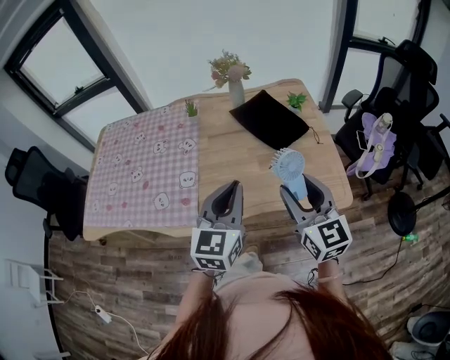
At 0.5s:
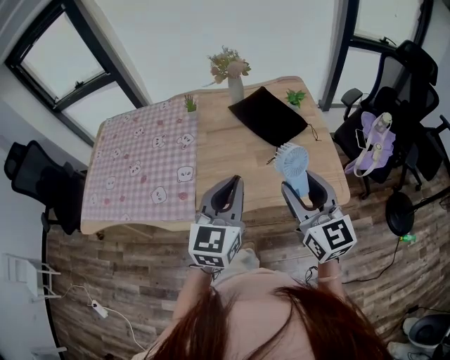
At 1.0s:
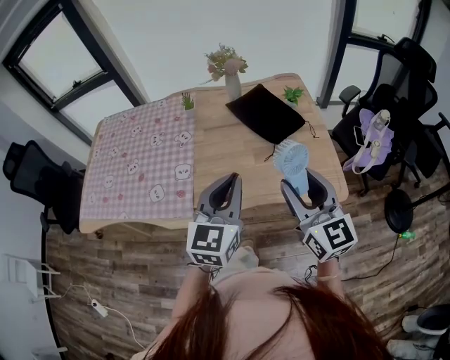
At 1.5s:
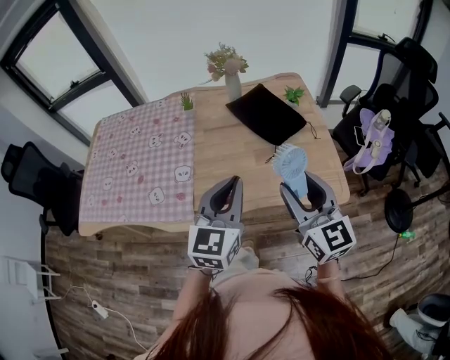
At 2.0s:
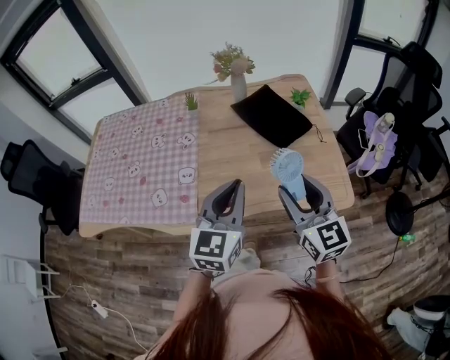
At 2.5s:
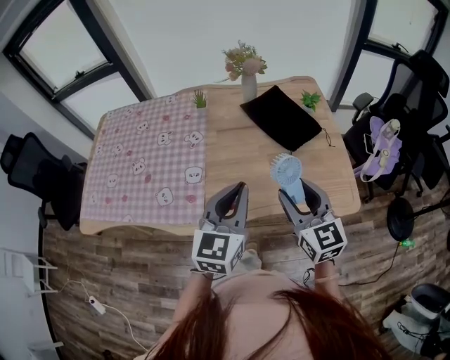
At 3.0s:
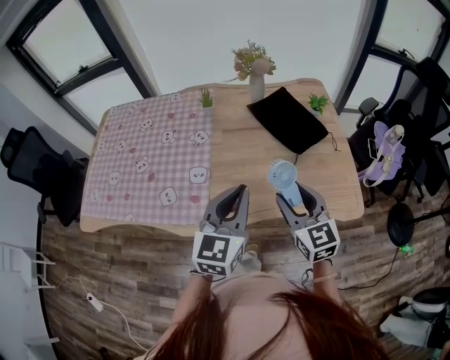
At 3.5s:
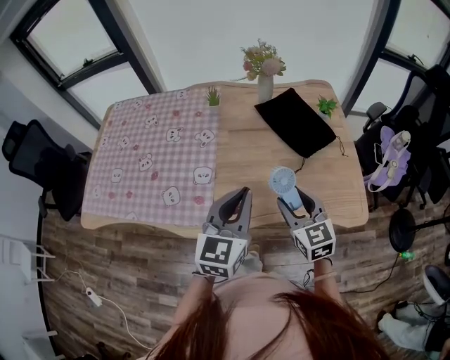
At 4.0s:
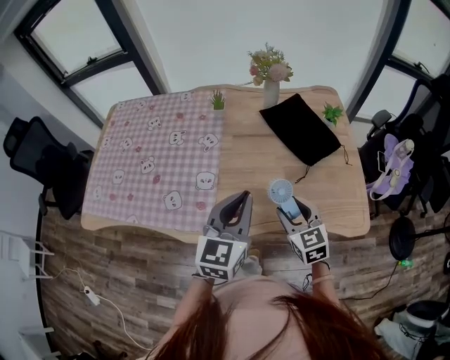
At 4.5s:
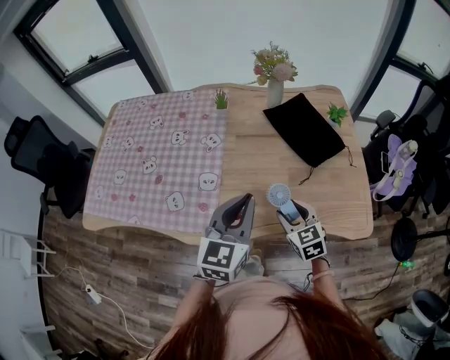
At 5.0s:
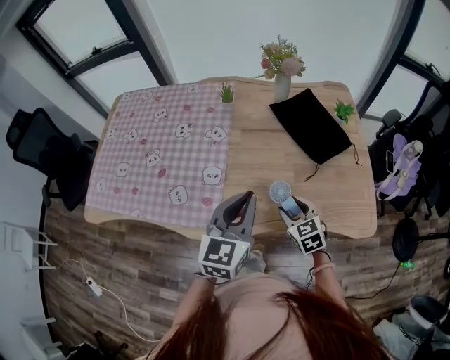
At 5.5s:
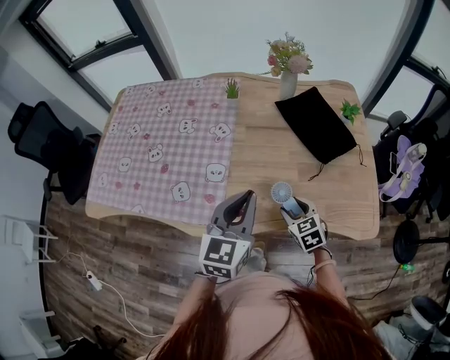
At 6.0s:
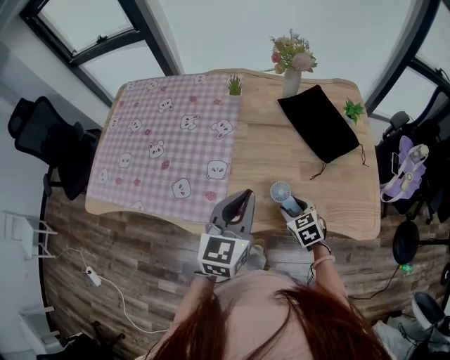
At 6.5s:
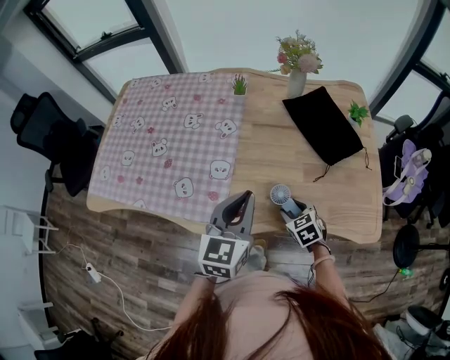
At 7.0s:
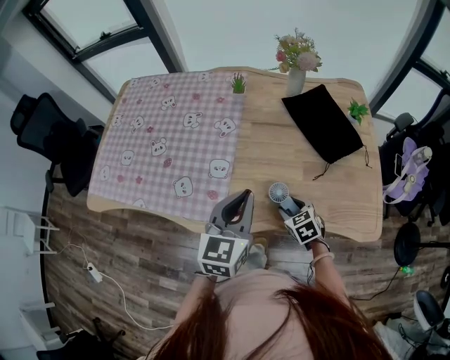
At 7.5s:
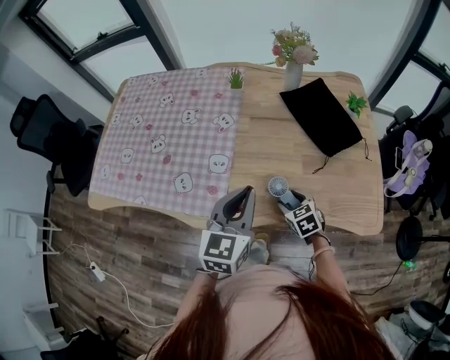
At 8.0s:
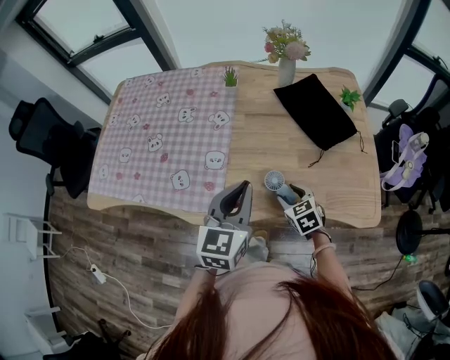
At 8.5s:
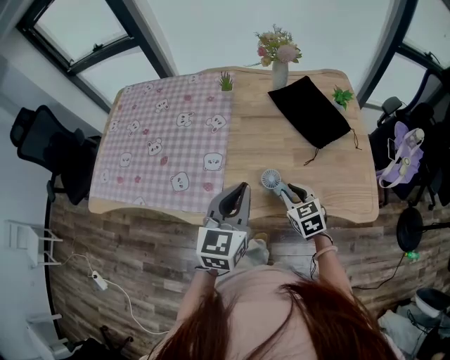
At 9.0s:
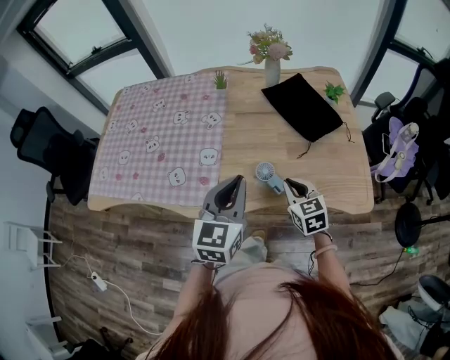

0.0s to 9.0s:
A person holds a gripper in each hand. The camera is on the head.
0.0s to 2.0s: There are only small adjustments of the grippers.
2.0s to 4.5s: The left gripper moves to the left and forward, some 10 cm. Meanwhile the right gripper moves downward, some 20 cm, and changes its angle by approximately 30 degrees.
4.5s to 7.0s: The right gripper heads downward, covering approximately 10 cm.
7.0s to 9.0s: The right gripper goes approximately 10 cm upward, swivels roughly 20 degrees, and closes its fingers. Meanwhile the left gripper travels backward by some 5 cm.

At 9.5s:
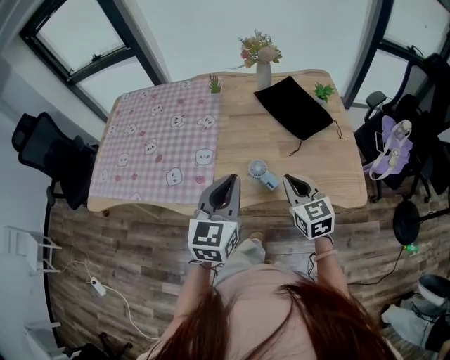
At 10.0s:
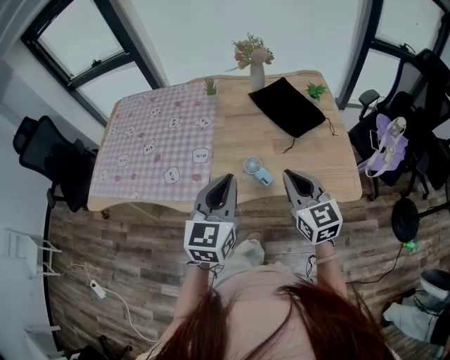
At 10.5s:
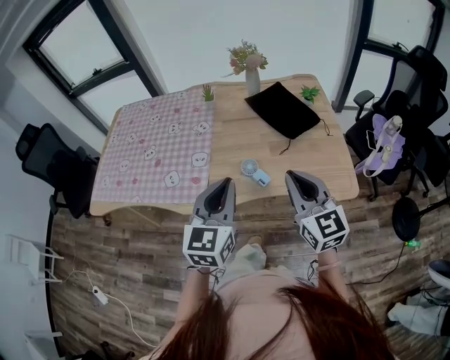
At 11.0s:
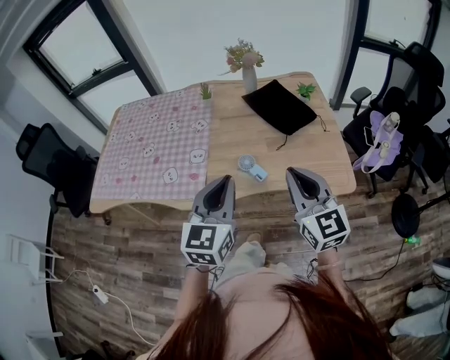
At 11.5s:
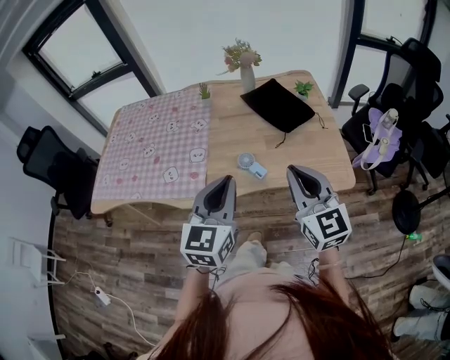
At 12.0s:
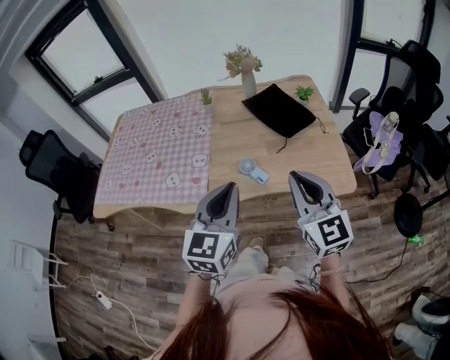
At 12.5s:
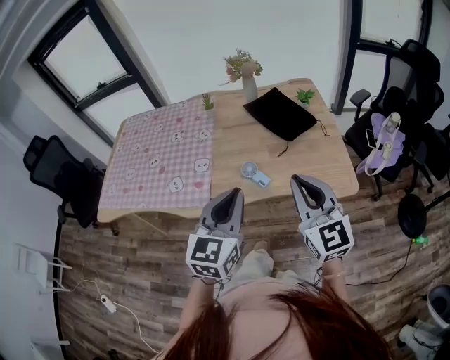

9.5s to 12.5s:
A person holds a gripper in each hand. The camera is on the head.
9.5s to 11.0s: The left gripper goes some 10 cm backward. Meanwhile the right gripper moves upward and backward, approximately 15 cm.
11.0s to 12.5s: There are only small adjustments of the grippers.

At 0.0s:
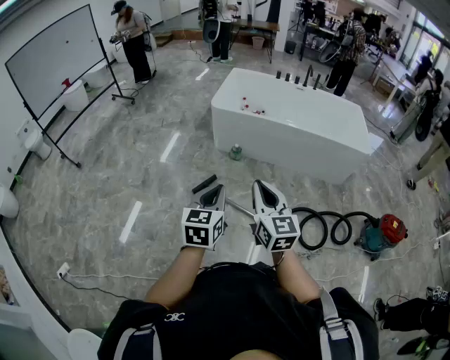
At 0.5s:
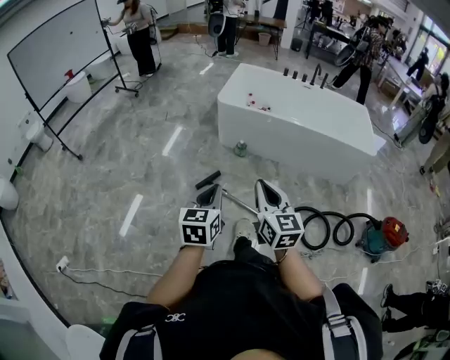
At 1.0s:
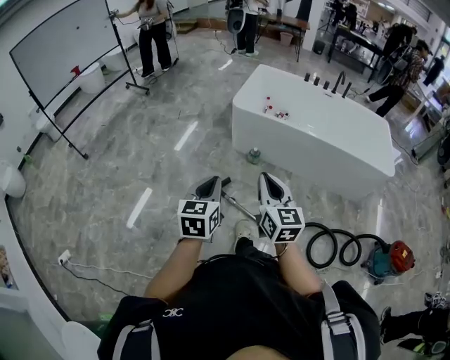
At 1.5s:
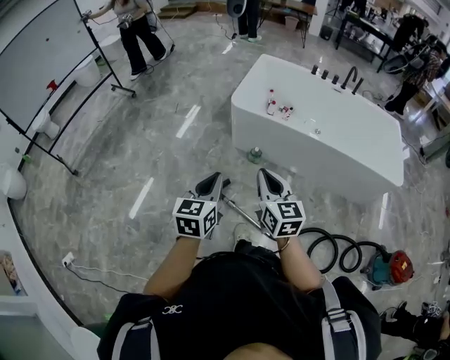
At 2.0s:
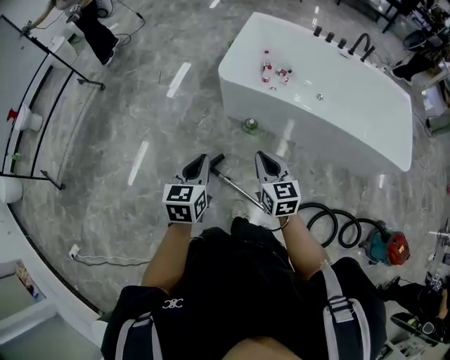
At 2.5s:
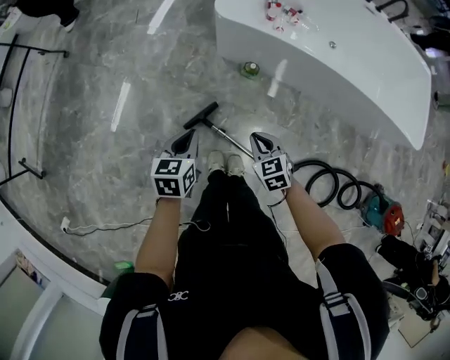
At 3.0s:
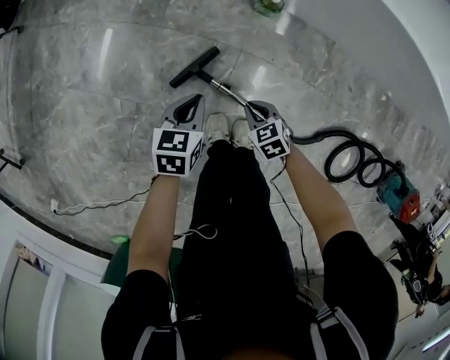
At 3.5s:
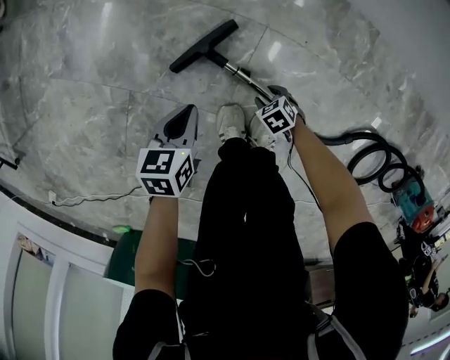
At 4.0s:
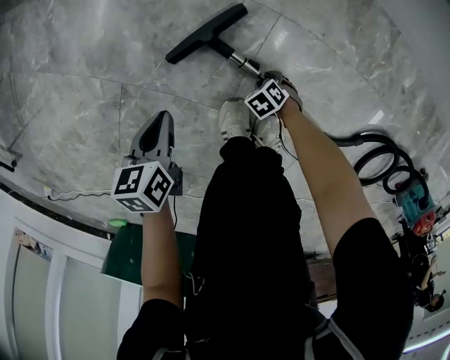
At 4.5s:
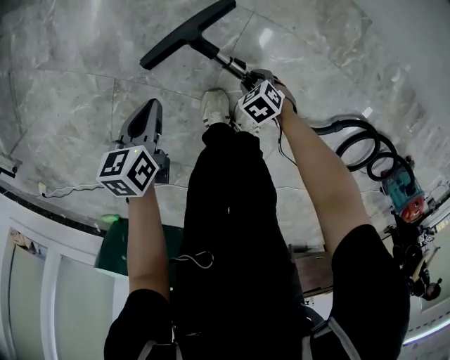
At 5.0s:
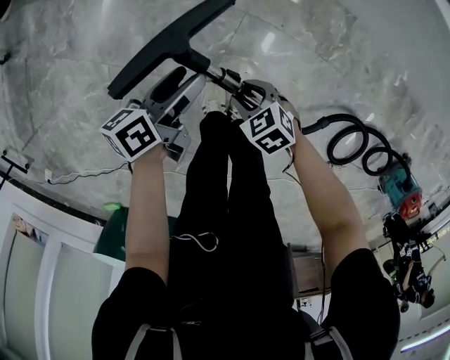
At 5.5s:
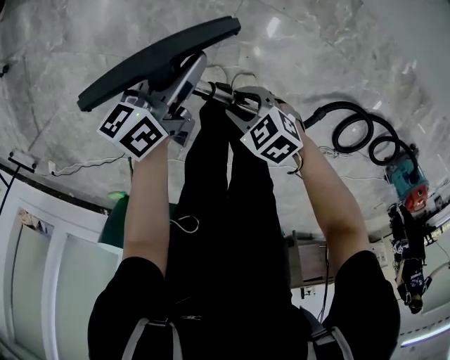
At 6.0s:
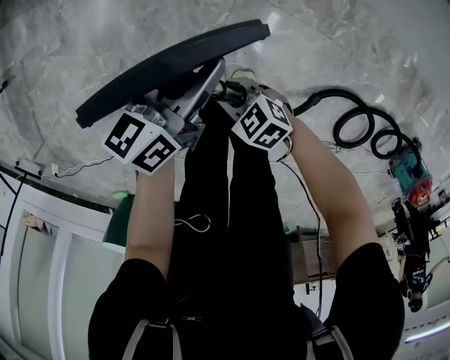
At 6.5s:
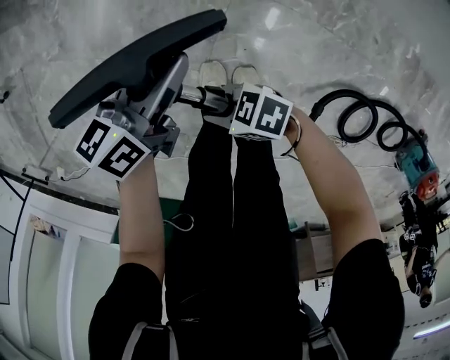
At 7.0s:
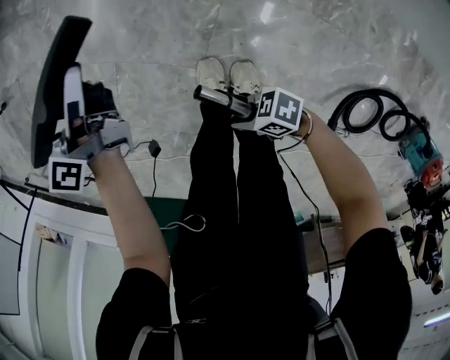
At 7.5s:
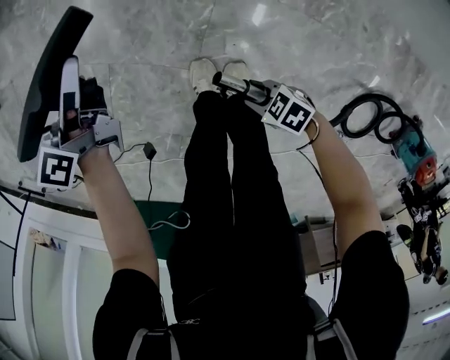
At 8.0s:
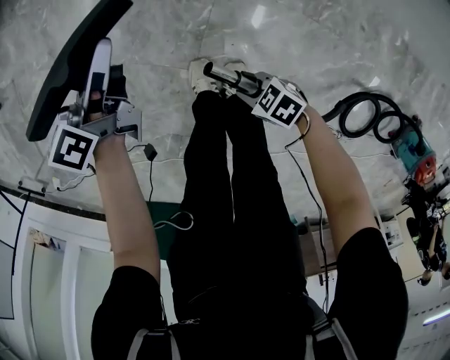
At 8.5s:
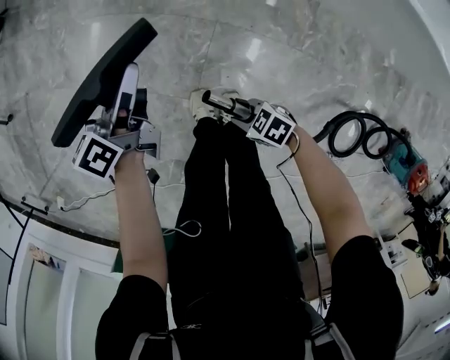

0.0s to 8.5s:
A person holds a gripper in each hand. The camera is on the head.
0.0s to 2.0s: Both grippers are carried forward, some 50 cm. The right gripper turns by approximately 20 degrees.
2.0s to 4.0s: The grippers both shift downward by roughly 80 cm. The left gripper rotates about 40 degrees, while the right gripper points its fingers approximately 60 degrees further downward, and opens its fingers.
4.0s to 6.5s: The left gripper travels upward by about 25 cm, tips its fingers upward by some 30 degrees, and opens; the right gripper goes approximately 40 cm upward, angles its fingers upward, by some 60 degrees, and closes its fingers.
6.5s to 8.5s: The right gripper rotates about 20 degrees, while the left gripper rotates some 20 degrees.

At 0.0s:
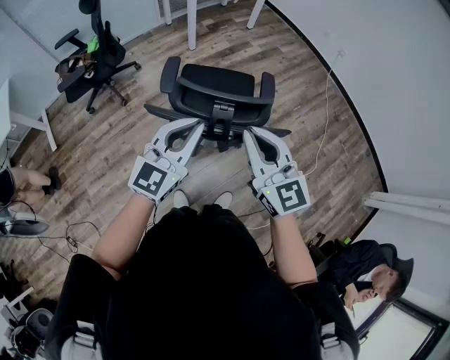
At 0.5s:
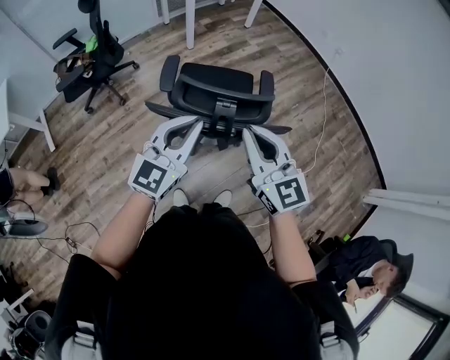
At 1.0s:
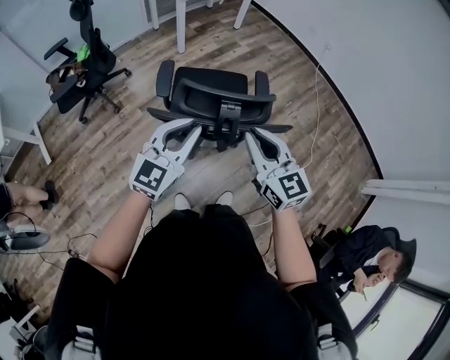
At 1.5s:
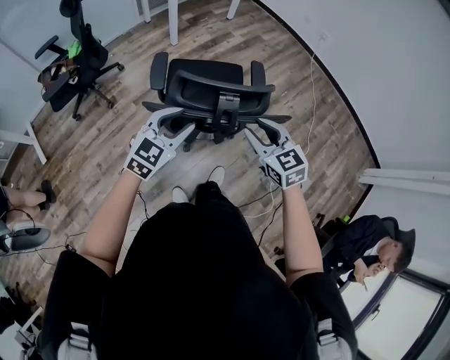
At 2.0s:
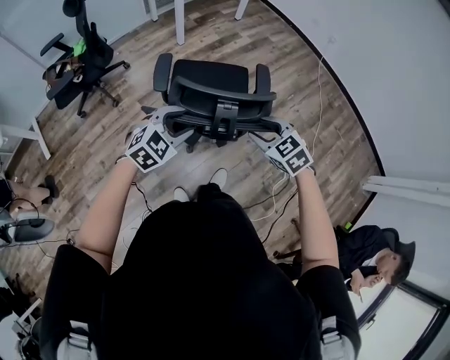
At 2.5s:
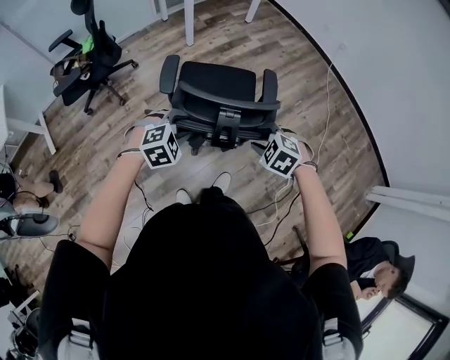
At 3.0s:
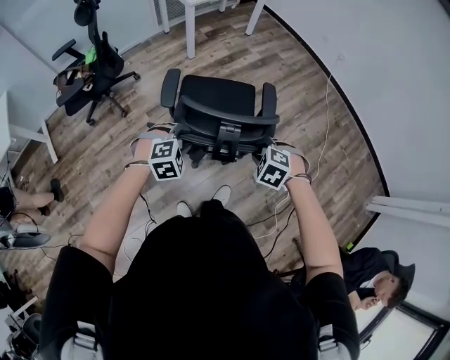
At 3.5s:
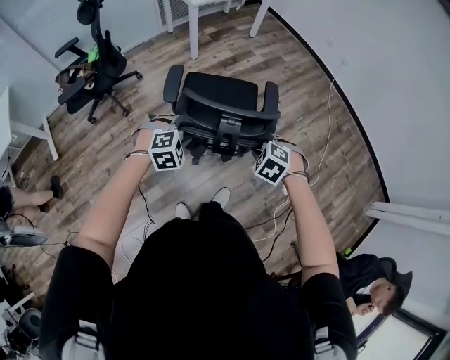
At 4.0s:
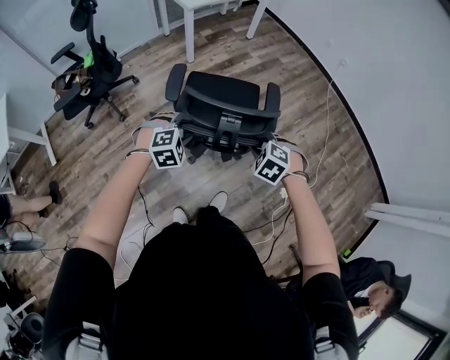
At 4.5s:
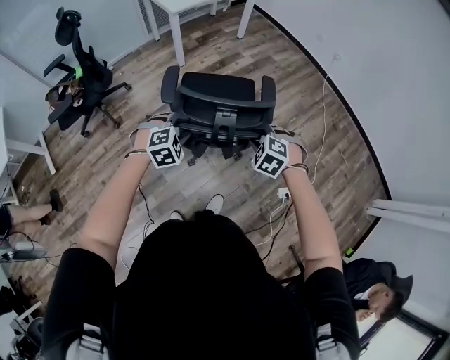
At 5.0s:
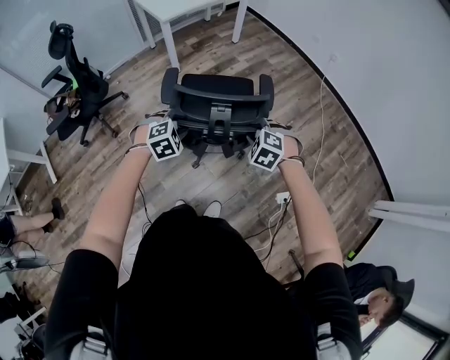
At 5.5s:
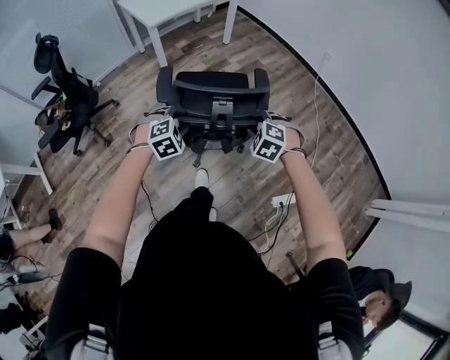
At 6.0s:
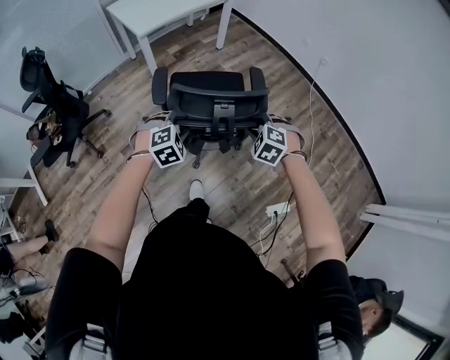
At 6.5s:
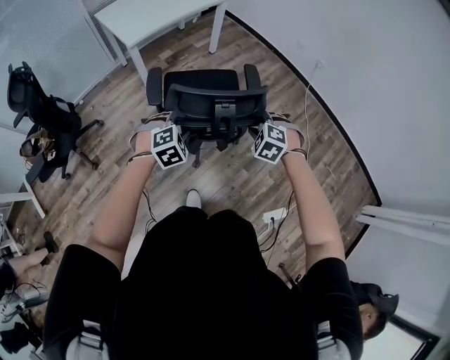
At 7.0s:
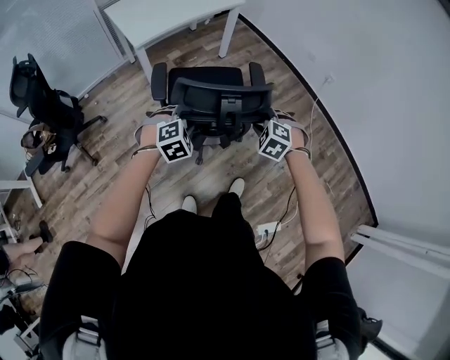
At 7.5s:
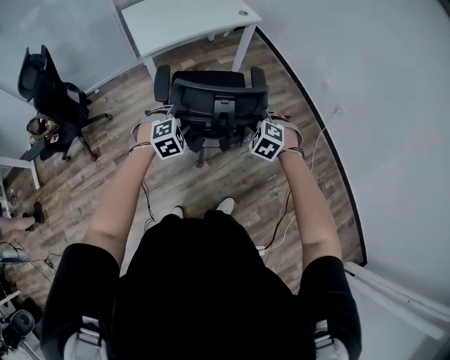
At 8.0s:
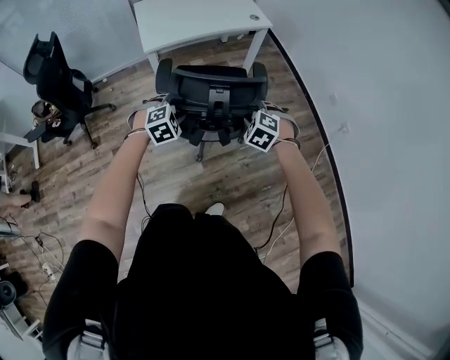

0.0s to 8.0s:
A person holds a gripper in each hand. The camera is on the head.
0.0s to 2.0s: The two grippers go roughly 15 cm downward. The left gripper angles its fingers downward, by some 40 degrees, and opens its fingers, while the right gripper angles its fingers downward, by some 40 degrees, and opens up.
2.0s to 4.0s: Both grippers travel together forward and downward, approximately 10 cm. The right gripper swivels approximately 30 degrees, while the left gripper rotates about 30 degrees.
4.0s to 6.0s: The grippers both shift forward and to the right by roughly 30 cm.
6.0s to 8.0s: Both grippers travel together forward, roughly 35 cm.
